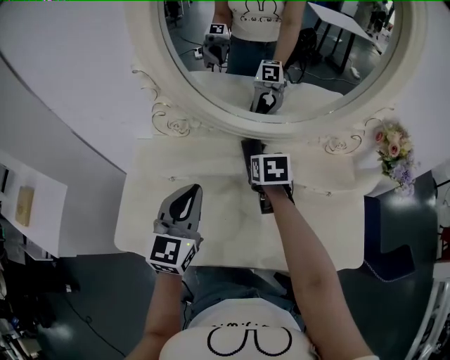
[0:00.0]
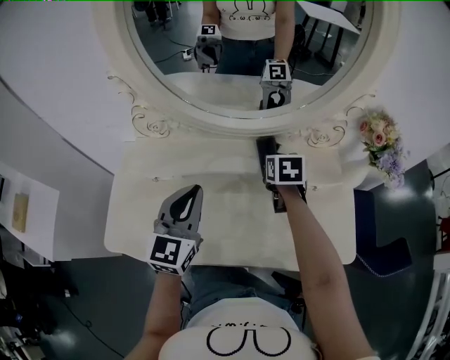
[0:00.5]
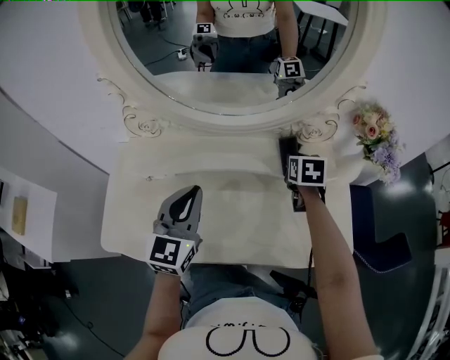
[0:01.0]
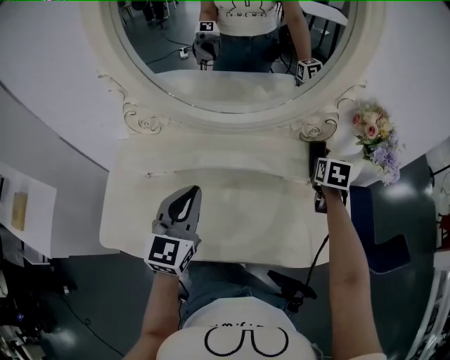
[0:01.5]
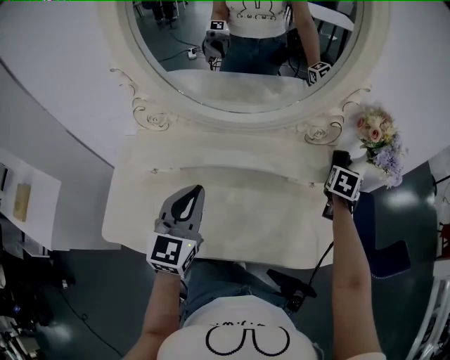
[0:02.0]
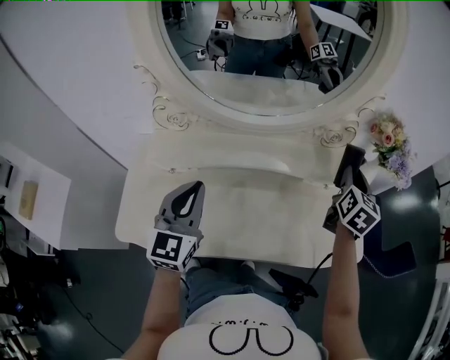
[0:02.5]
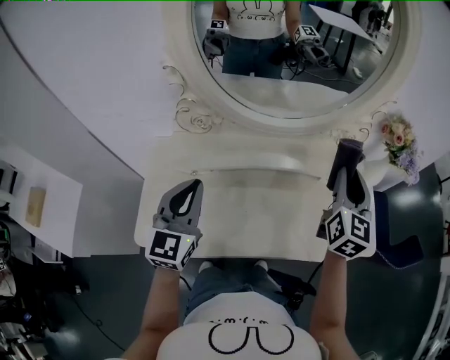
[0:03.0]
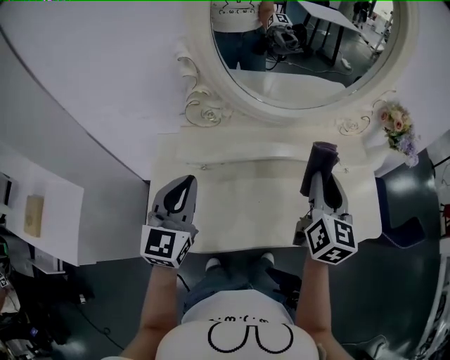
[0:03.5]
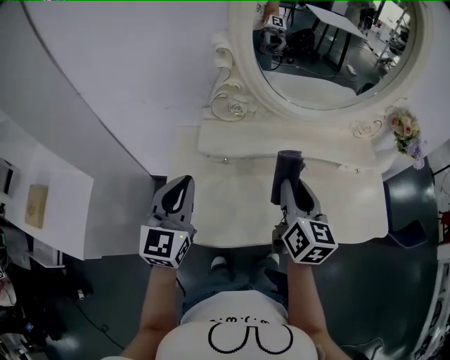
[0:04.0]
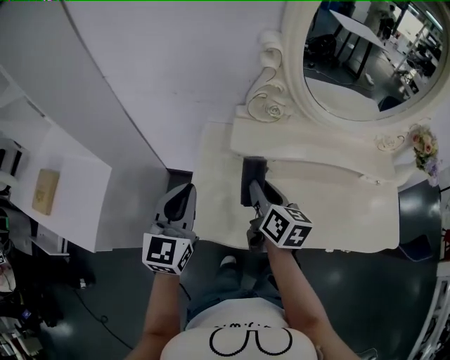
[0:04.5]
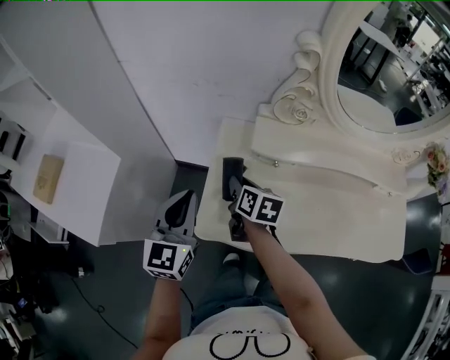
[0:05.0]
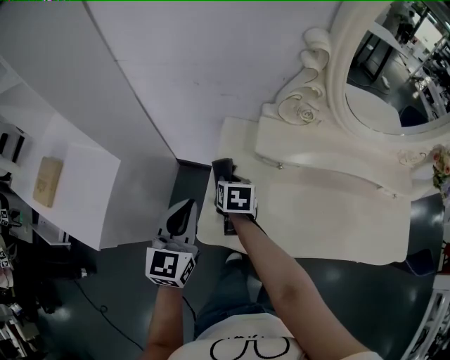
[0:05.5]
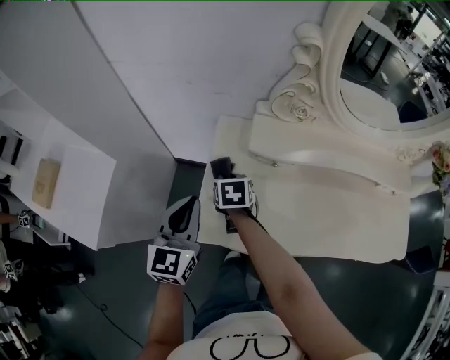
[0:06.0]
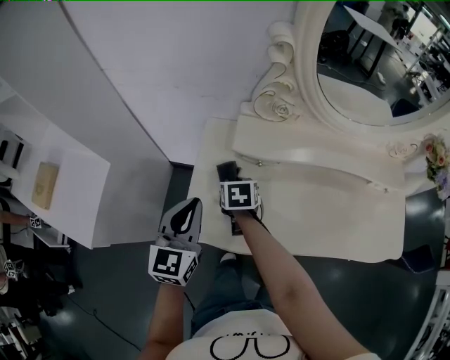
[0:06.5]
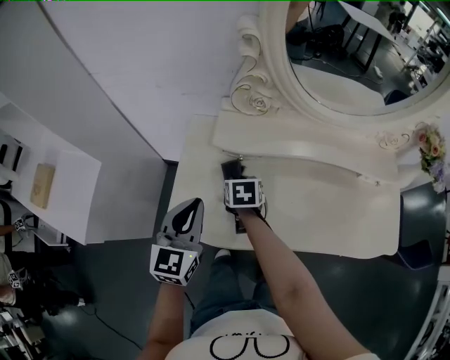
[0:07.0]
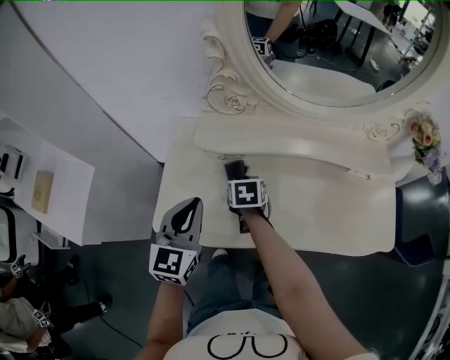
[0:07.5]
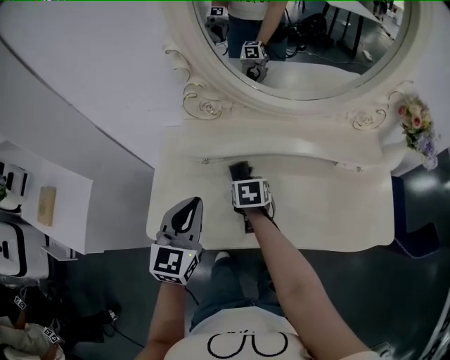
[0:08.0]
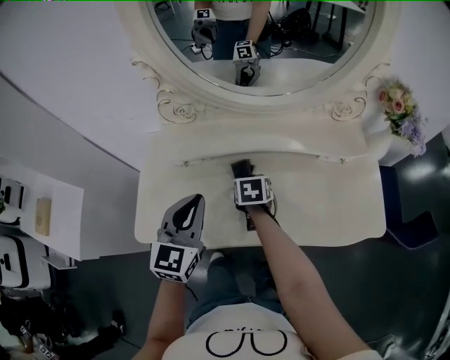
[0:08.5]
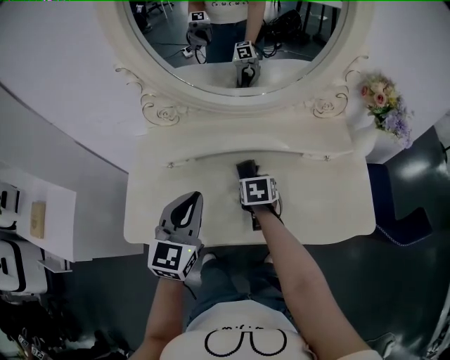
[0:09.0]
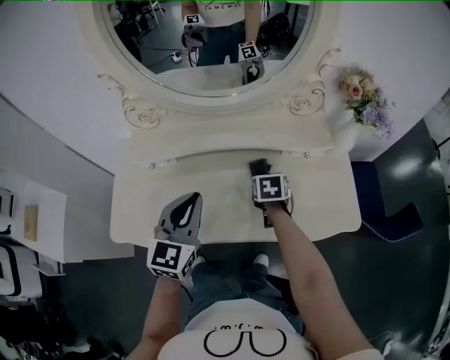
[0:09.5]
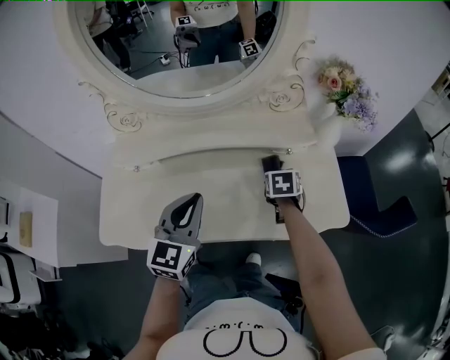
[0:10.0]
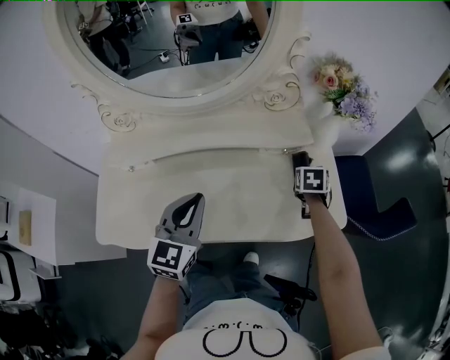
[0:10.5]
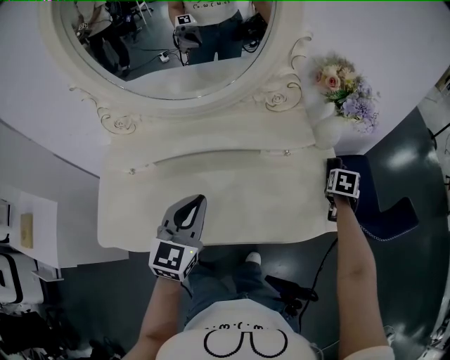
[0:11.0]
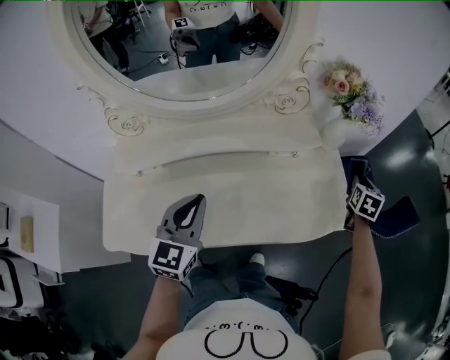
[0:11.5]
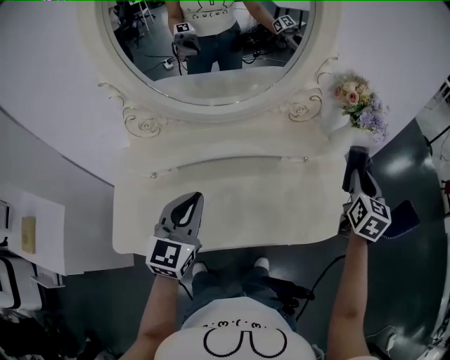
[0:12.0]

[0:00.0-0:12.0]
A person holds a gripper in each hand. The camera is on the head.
0:00.0 to 0:02.0: The right gripper shifts by about 40 cm, and changes its angle by roughly 40 degrees. Meanwhile the left gripper shifts by roughly 10 cm.
0:02.0 to 0:04.0: The left gripper goes about 30 cm to the left and backward; the right gripper is displaced to the left and backward by roughly 50 cm, and turns by some 50 degrees.
0:04.0 to 0:06.0: The left gripper goes some 15 cm to the left and downward. The right gripper heads to the left and downward, covering approximately 40 cm, and angles its fingers downward, by some 40 degrees.
0:06.0 to 0:08.0: Both grippers travel together to the right, about 25 cm.
0:08.0 to 0:10.0: The right gripper moves to the right, roughly 40 cm, while the left gripper moves to the right, about 25 cm.
0:10.0 to 0:12.0: The right gripper goes roughly 25 cm upward and to the right, and angles its fingers upward, by some 40 degrees. The left gripper moves to the left, about 5 cm.

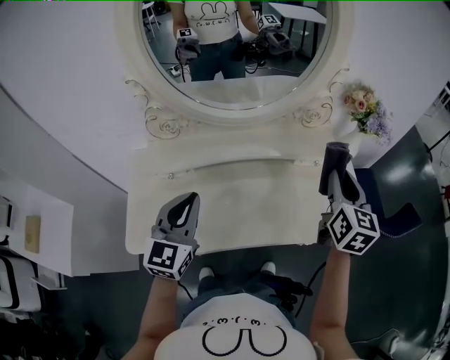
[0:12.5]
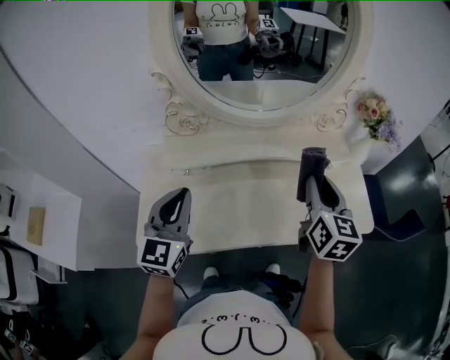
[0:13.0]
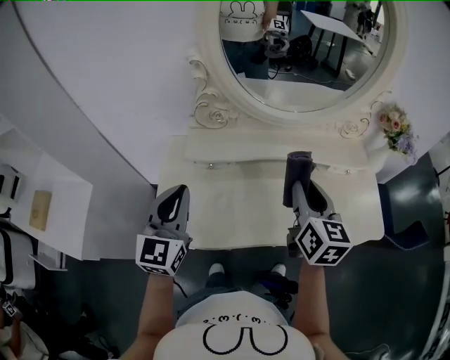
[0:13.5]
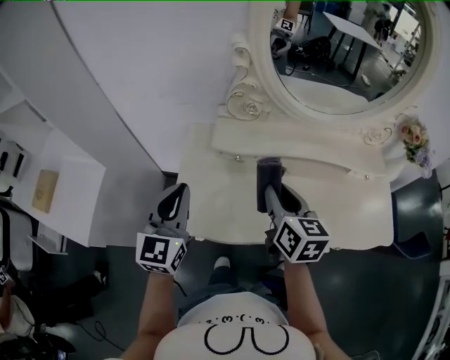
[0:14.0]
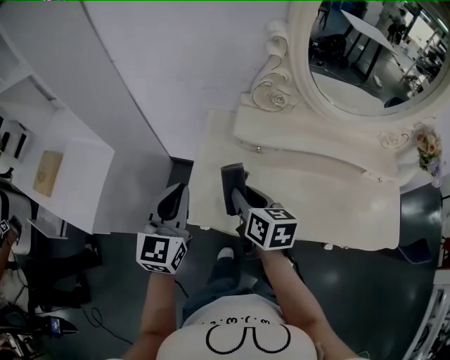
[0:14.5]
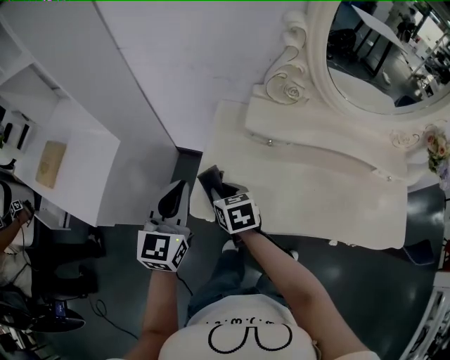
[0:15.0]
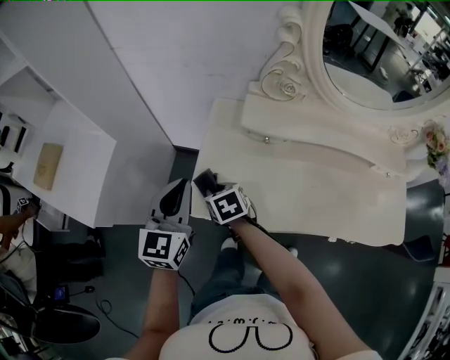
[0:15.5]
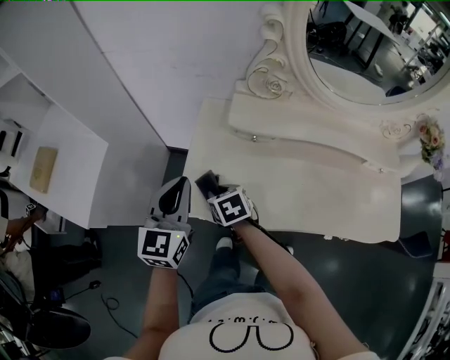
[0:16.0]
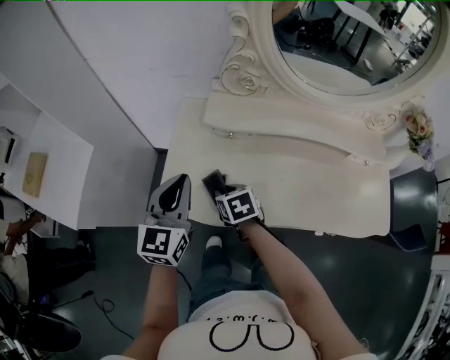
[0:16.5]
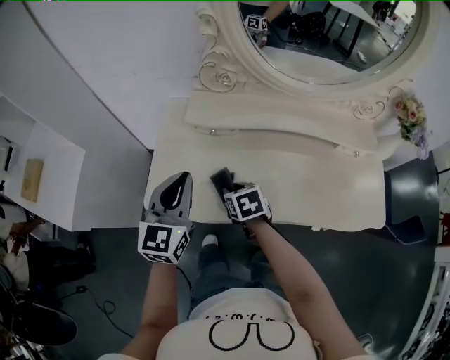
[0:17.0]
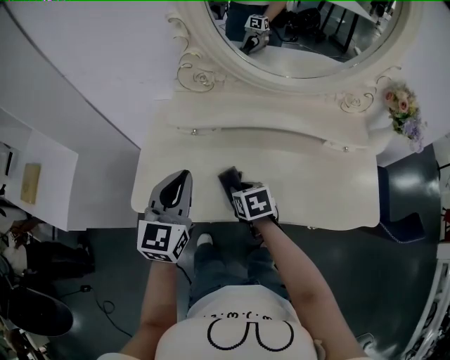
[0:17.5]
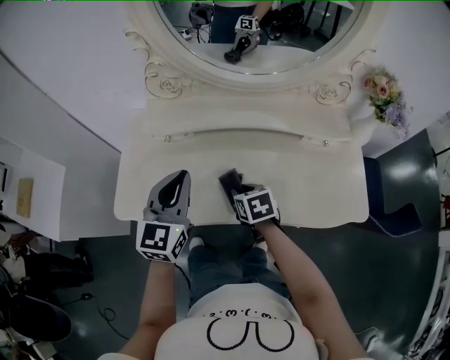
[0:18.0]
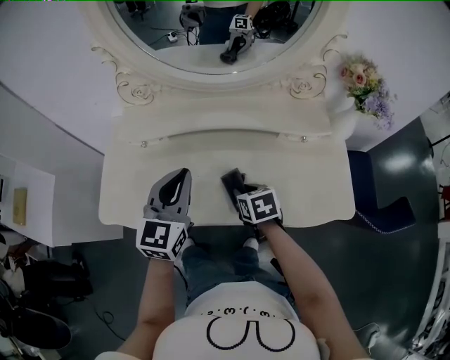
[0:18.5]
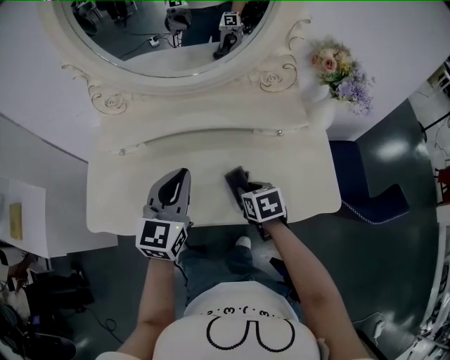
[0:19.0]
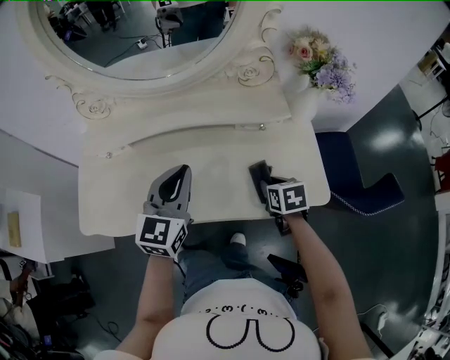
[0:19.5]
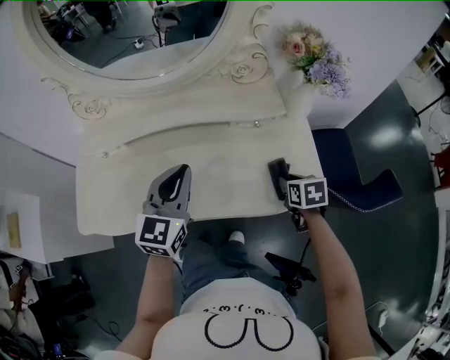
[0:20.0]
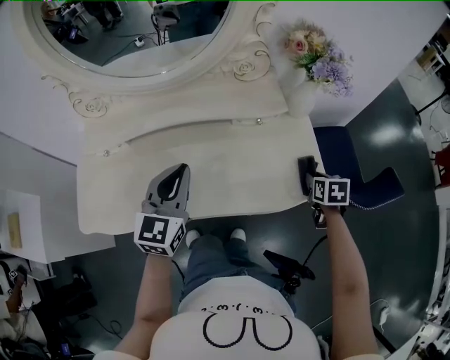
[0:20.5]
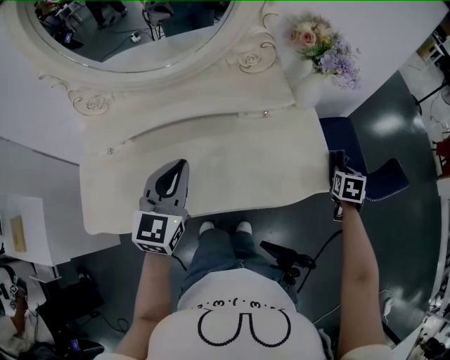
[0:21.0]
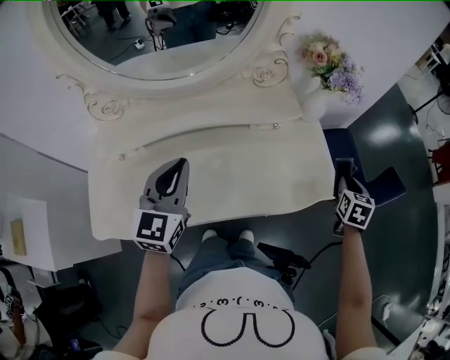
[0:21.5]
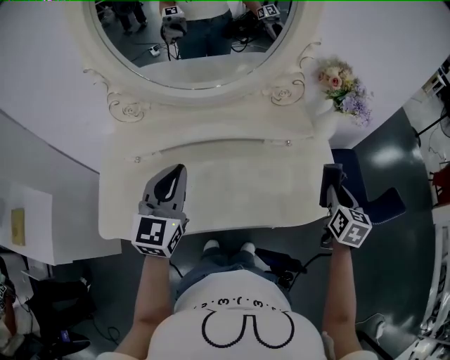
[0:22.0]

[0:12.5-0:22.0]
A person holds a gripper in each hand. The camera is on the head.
0:12.5 to 0:14.5: The right gripper ends up approximately 60 cm from where it was, and swivels approximately 50 degrees. Meanwhile the left gripper ends up approximately 35 cm from where it was, and turns by about 20 degrees.
0:14.5 to 0:16.5: The right gripper is displaced downward by about 15 cm, reaches about 10 cm to the left, then returns, and changes its angle by about 30 degrees, while the left gripper goes roughly 10 cm to the right.
0:16.5 to 0:18.0: The two grippers go roughly 25 cm to the right.
0:18.0 to 0:20.0: The right gripper travels to the right by approximately 40 cm, and changes its angle by approximately 20 degrees. Meanwhile the left gripper heads to the right, covering roughly 25 cm.
0:20.0 to 0:22.0: The right gripper travels upward by some 15 cm, and turns by about 30 degrees. Meanwhile the left gripper ends up roughly 15 cm from where it was.

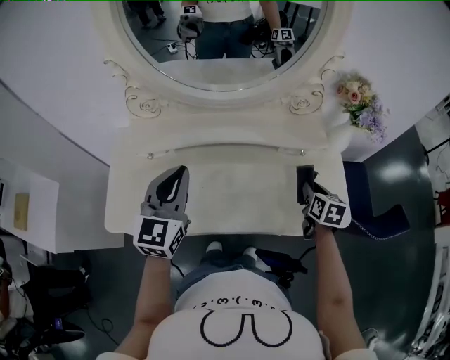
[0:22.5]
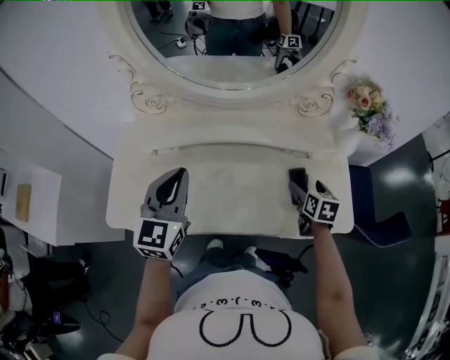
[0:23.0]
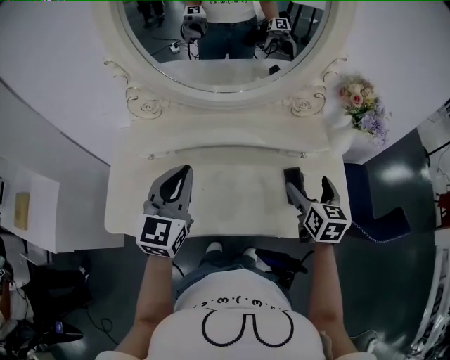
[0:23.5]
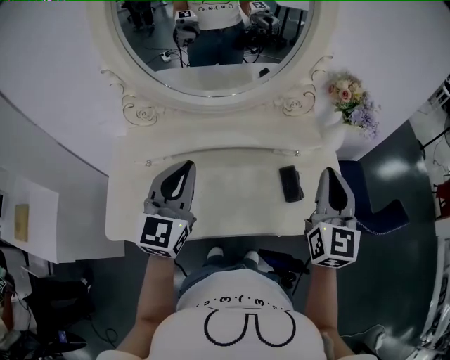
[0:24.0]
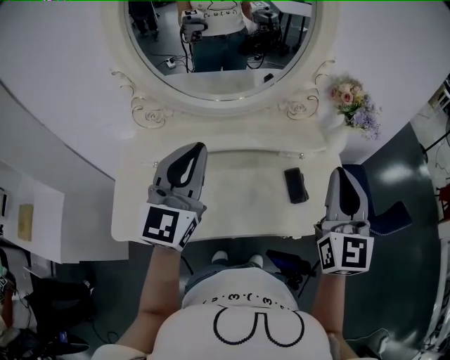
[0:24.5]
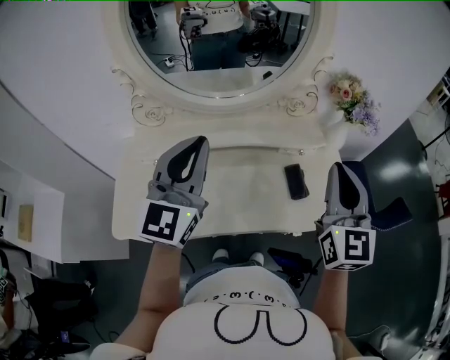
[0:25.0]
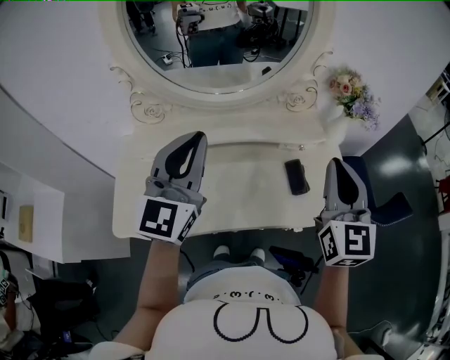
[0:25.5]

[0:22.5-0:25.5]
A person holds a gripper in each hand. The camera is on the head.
0:22.5 to 0:24.0: The right gripper travels upward by approximately 25 cm, points its fingers roughly 40 degrees further upward, and opens, then closes again.
0:24.0 to 0:25.5: The left gripper is displaced upward by approximately 10 cm; the right gripper is displaced upward by roughly 5 cm.

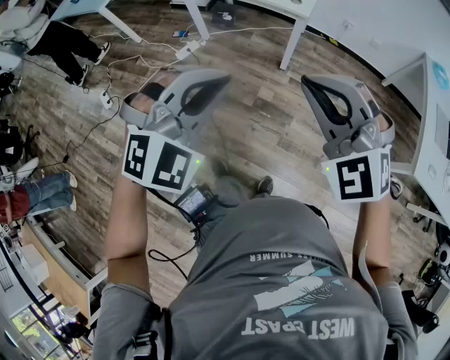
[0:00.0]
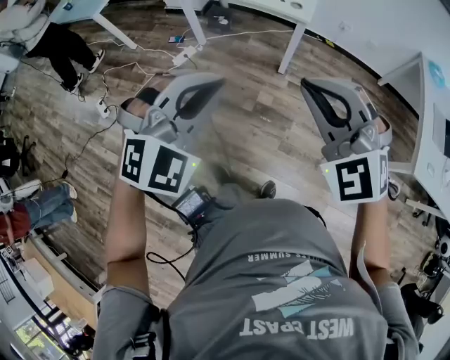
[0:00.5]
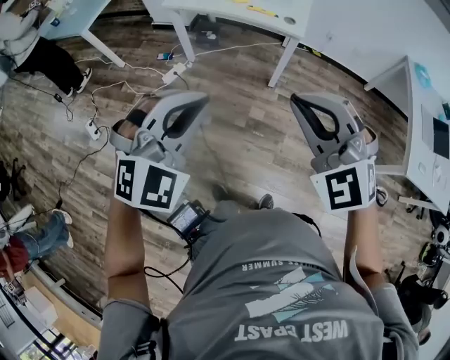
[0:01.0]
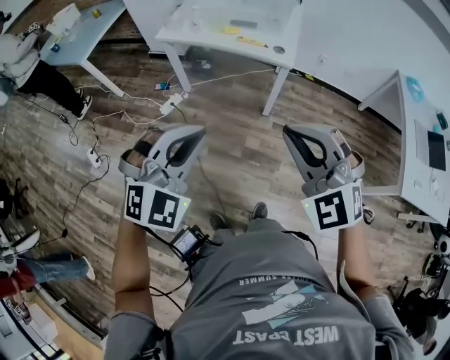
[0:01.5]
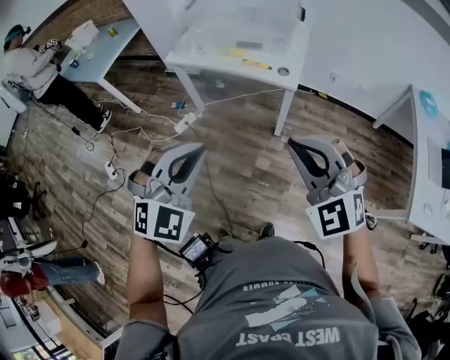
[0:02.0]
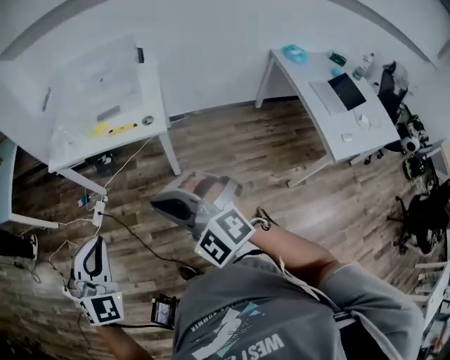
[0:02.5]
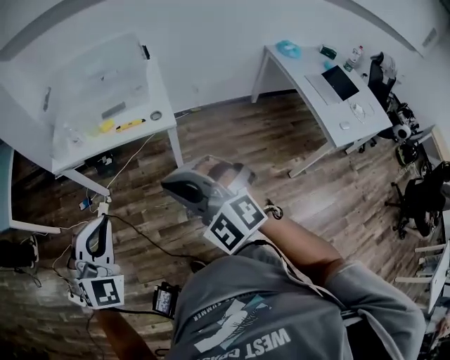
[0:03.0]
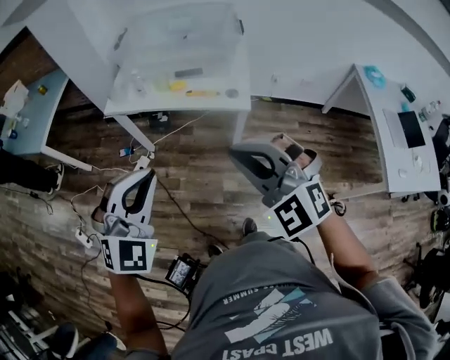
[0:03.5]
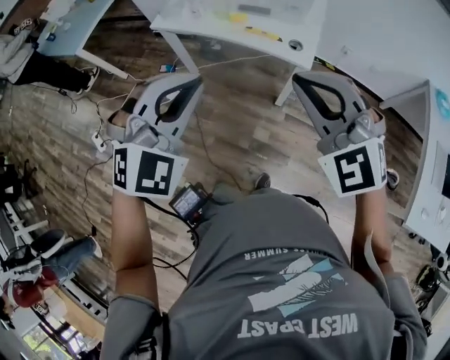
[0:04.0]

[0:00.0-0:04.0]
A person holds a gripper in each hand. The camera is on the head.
0:00.0 to 0:02.0: The grippers both shift forward by roughly 15 cm.
0:02.0 to 0:04.0: The grippers both shift forward by roughly 20 cm.
